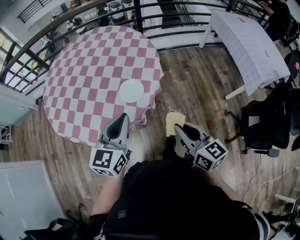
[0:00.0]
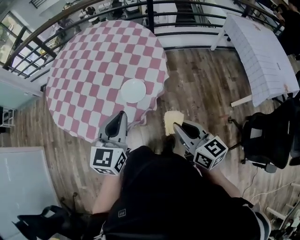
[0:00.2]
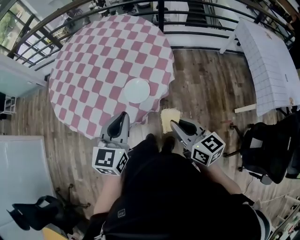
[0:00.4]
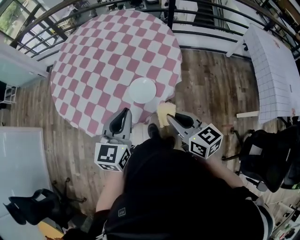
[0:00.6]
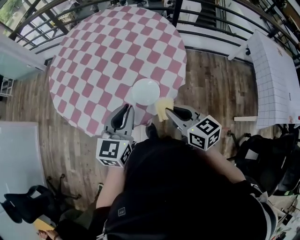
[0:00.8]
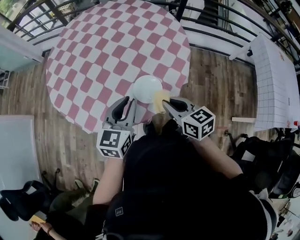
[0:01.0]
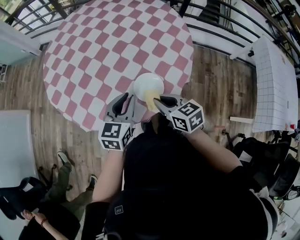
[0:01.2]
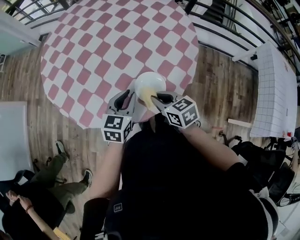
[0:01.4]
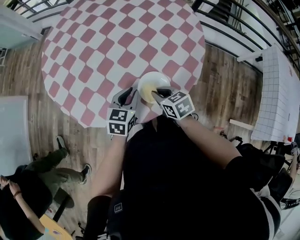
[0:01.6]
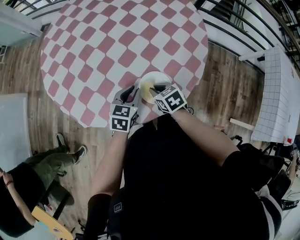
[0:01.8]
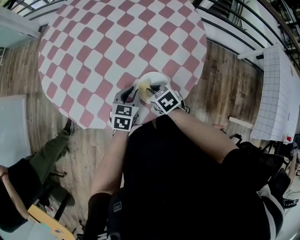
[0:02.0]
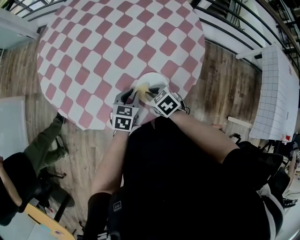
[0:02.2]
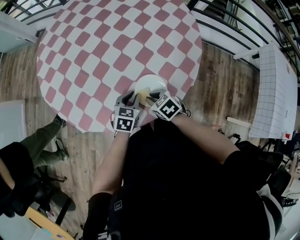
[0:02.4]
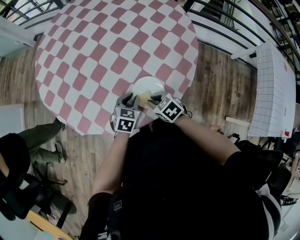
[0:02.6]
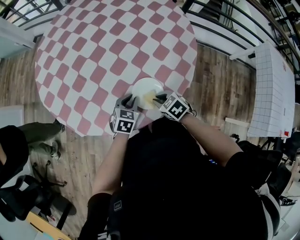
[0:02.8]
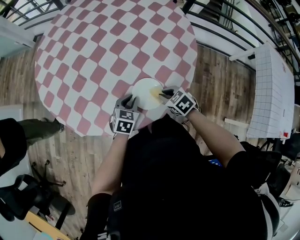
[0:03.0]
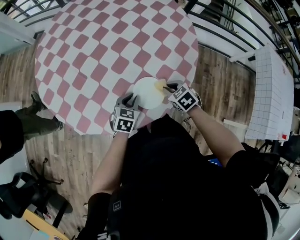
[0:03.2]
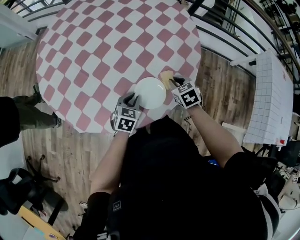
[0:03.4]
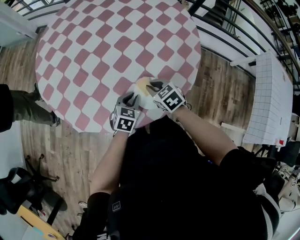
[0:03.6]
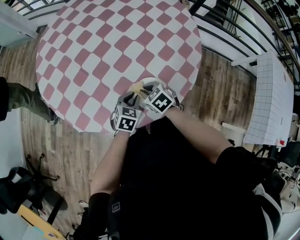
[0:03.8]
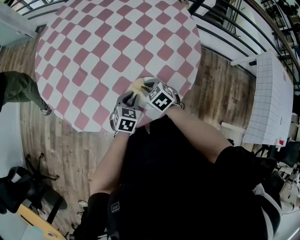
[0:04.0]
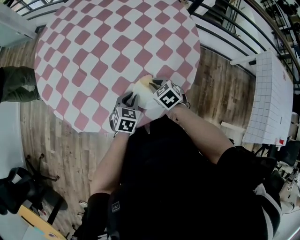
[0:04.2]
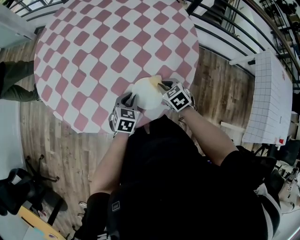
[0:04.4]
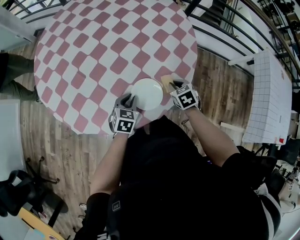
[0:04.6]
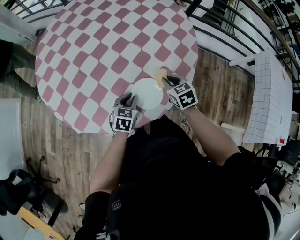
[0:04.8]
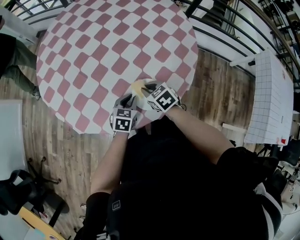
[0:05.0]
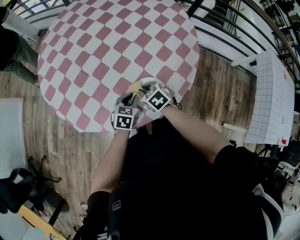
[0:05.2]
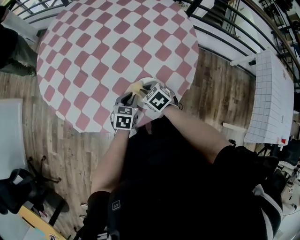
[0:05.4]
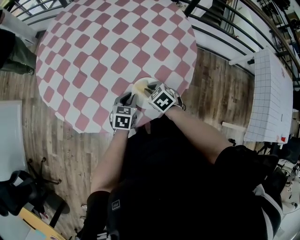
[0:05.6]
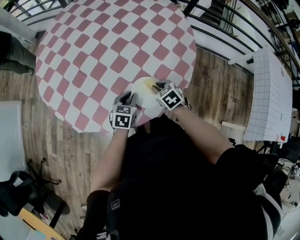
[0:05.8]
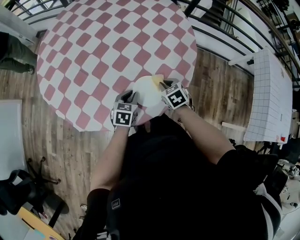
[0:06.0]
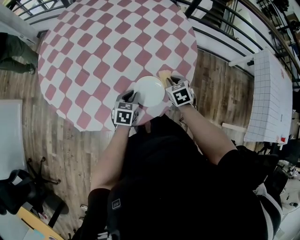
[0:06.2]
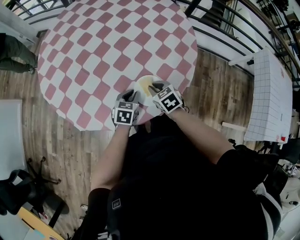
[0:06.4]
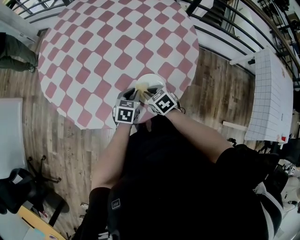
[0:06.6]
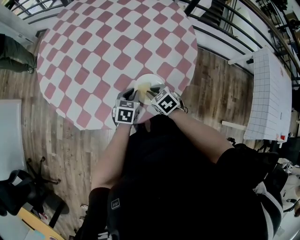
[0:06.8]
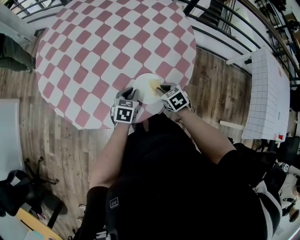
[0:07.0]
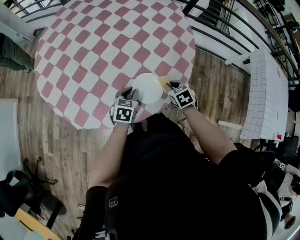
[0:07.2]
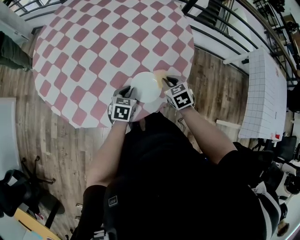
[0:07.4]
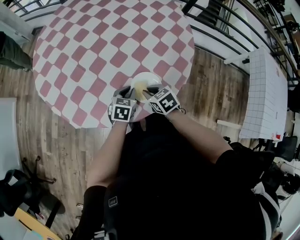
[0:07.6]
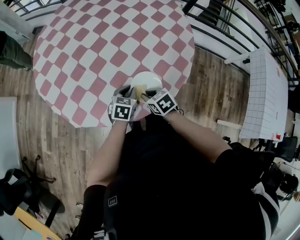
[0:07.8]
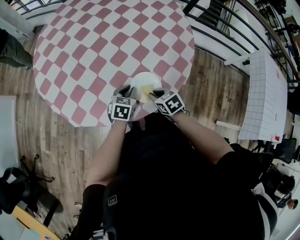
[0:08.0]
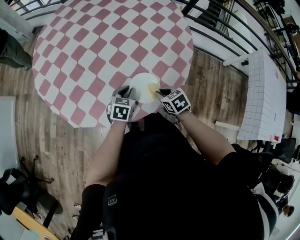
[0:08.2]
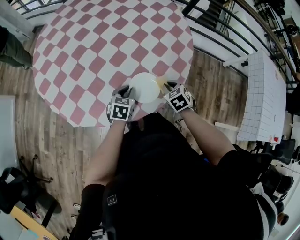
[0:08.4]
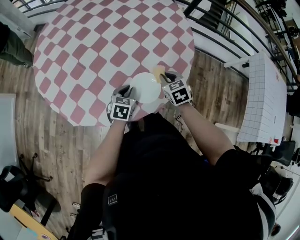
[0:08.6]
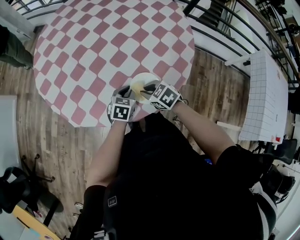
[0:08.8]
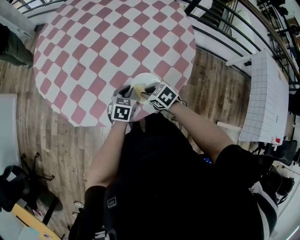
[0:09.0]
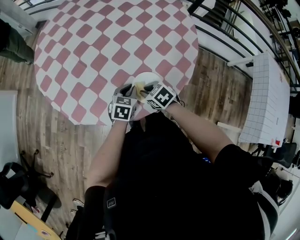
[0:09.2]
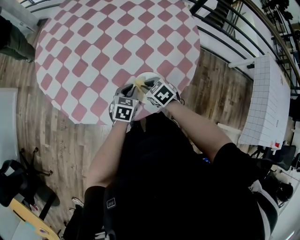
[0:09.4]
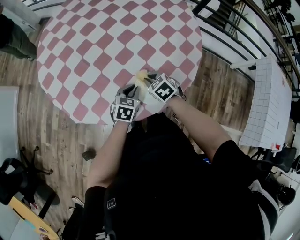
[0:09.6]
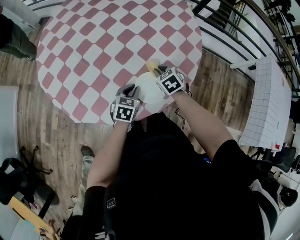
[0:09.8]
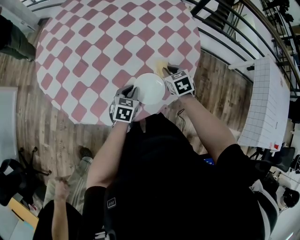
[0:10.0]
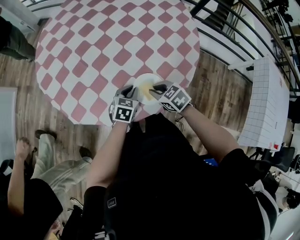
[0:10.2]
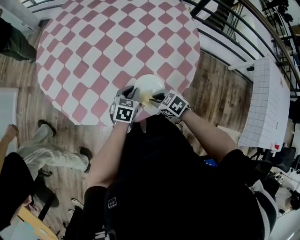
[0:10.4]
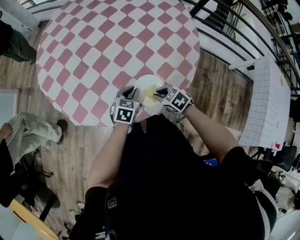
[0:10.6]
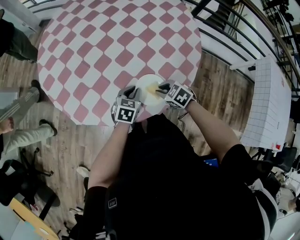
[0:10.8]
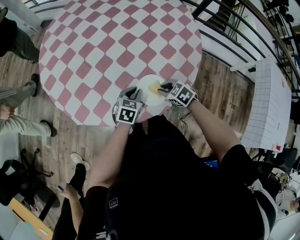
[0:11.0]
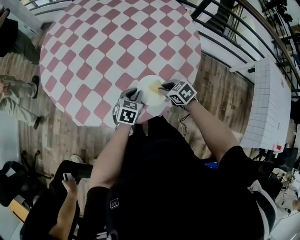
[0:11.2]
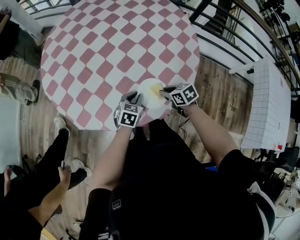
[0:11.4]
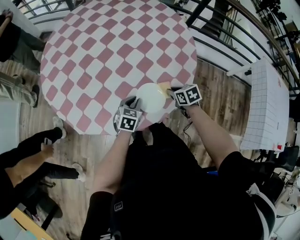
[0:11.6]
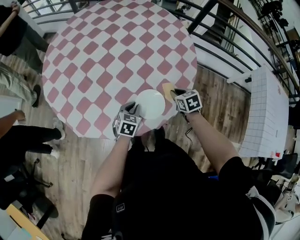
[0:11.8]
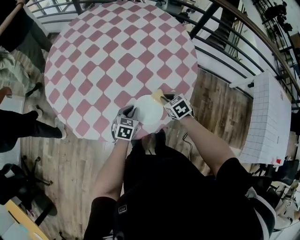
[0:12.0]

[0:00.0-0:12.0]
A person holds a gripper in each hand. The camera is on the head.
0:00.0 to 0:01.6: The right gripper changes place by about 40 cm, and tilts its fingers some 30 degrees downward; the left gripper moves downward, roughly 25 cm, and swivels about 30 degrees.
0:01.6 to 0:03.0: The right gripper shifts roughly 5 cm to the right, and swivels approximately 20 degrees; the left gripper goes roughly 10 cm downward.
0:03.0 to 0:04.4: The right gripper moves left and right over some 15 cm, changing direction 2 times.
0:04.4 to 0:06.0: The right gripper swings left and right, roughly 15 cm each way, with 2 reversals.
0:06.0 to 0:07.6: The right gripper swings left and right, roughly 15 cm each way, with 2 reversals.
0:10.4 to 0:12.0: The right gripper heads to the right and forward, covering about 15 cm, and swivels some 20 degrees.

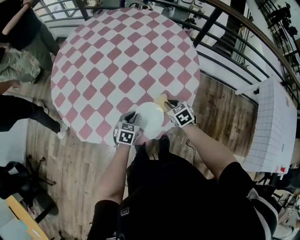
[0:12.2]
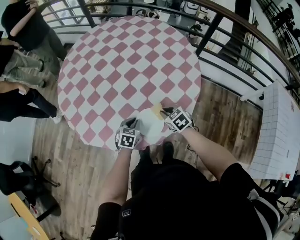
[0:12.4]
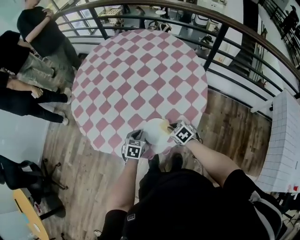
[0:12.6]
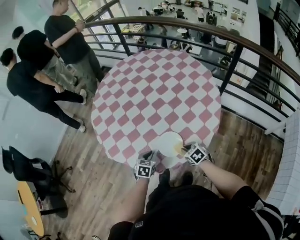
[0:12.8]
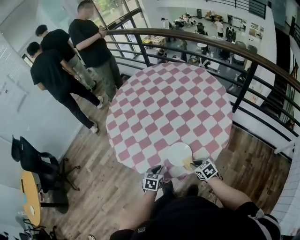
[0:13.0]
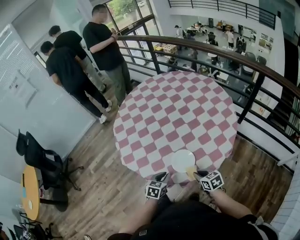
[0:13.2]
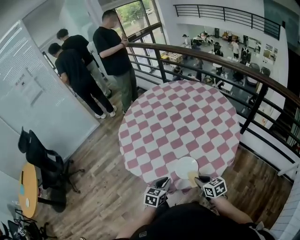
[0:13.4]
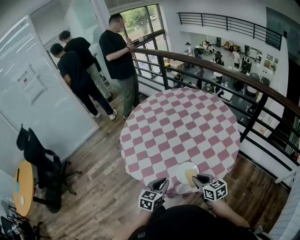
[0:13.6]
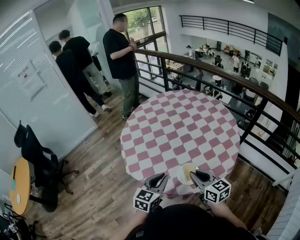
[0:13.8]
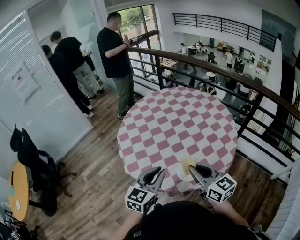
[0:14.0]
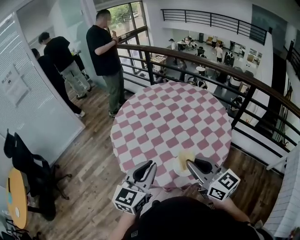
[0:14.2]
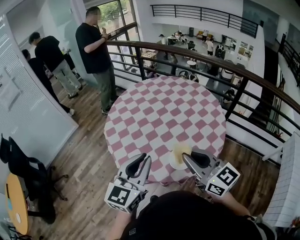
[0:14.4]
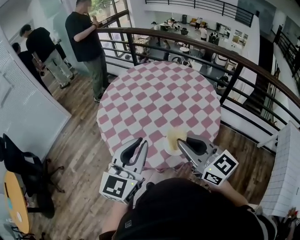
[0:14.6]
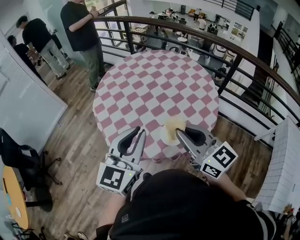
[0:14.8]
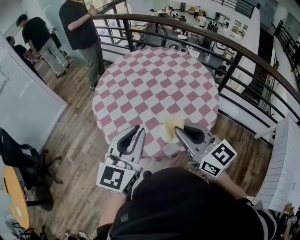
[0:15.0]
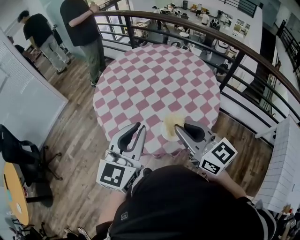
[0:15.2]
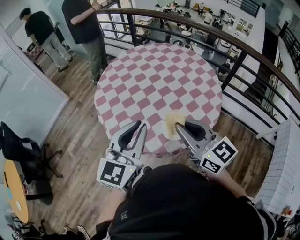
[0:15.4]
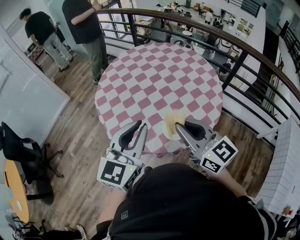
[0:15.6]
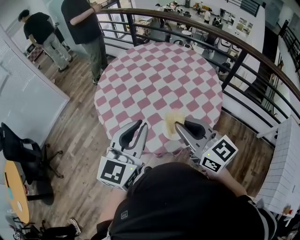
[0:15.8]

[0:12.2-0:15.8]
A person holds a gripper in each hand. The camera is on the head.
0:12.2 to 0:14.0: Both grippers move upward, some 30 cm. The left gripper angles its fingers upward, by about 30 degrees; the right gripper tilts its fingers some 50 degrees upward.
0:14.0 to 0:15.8: The grippers both shift upward by about 10 cm.

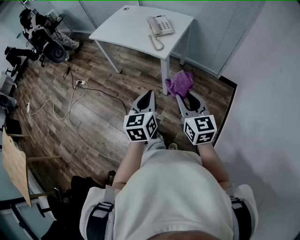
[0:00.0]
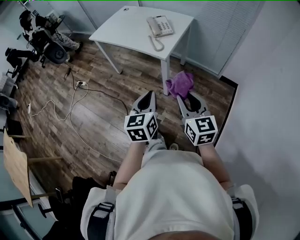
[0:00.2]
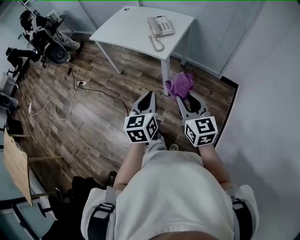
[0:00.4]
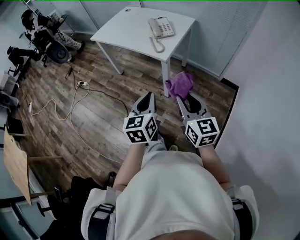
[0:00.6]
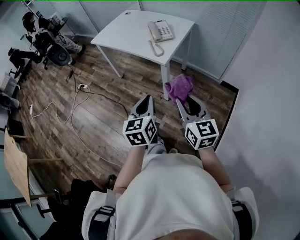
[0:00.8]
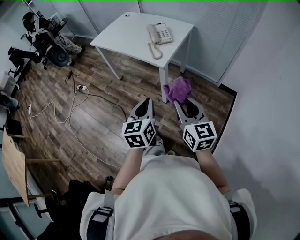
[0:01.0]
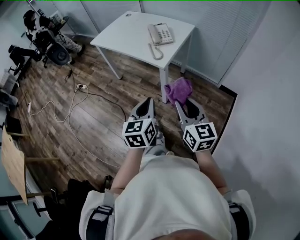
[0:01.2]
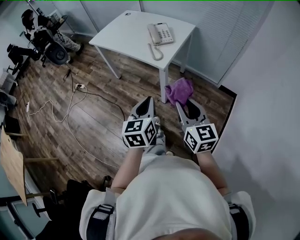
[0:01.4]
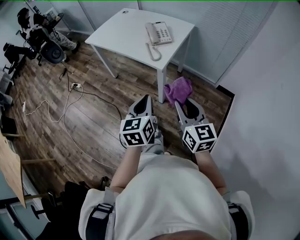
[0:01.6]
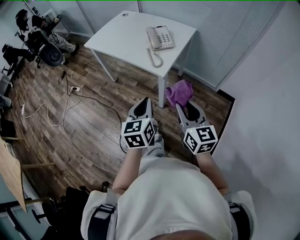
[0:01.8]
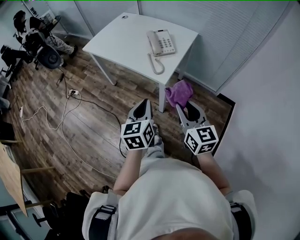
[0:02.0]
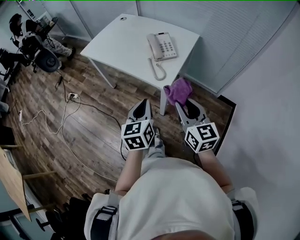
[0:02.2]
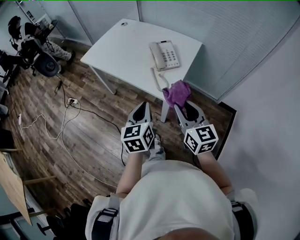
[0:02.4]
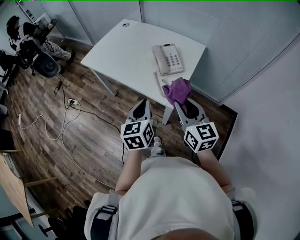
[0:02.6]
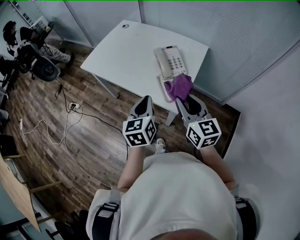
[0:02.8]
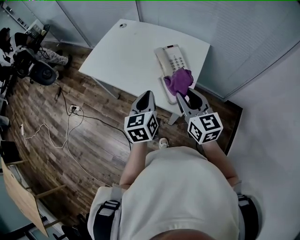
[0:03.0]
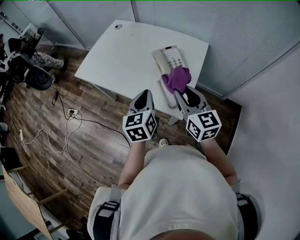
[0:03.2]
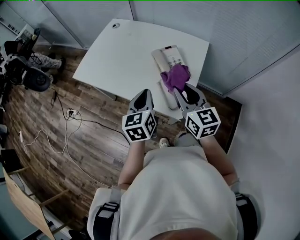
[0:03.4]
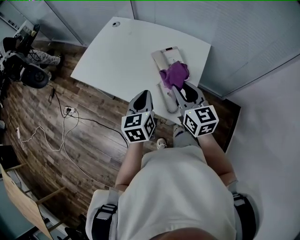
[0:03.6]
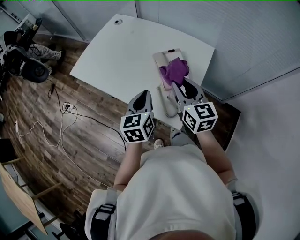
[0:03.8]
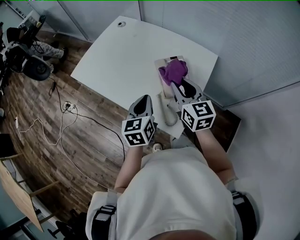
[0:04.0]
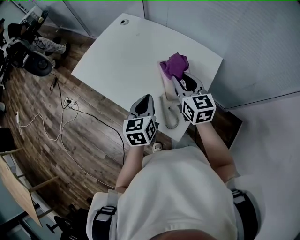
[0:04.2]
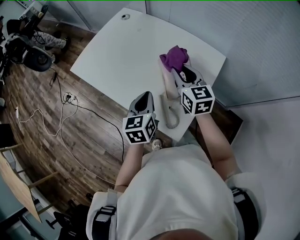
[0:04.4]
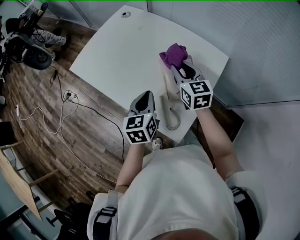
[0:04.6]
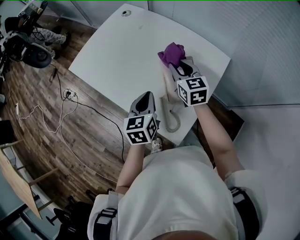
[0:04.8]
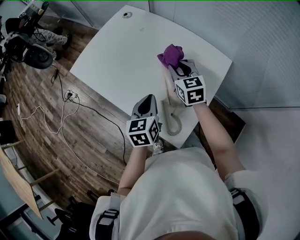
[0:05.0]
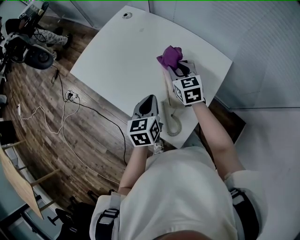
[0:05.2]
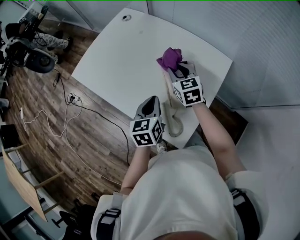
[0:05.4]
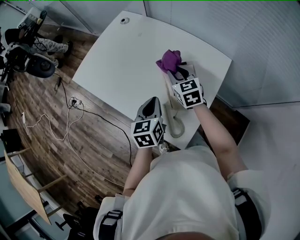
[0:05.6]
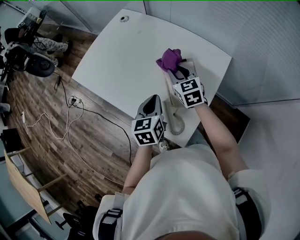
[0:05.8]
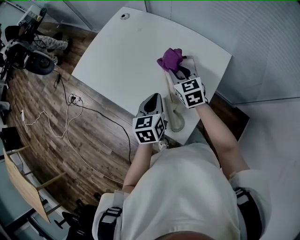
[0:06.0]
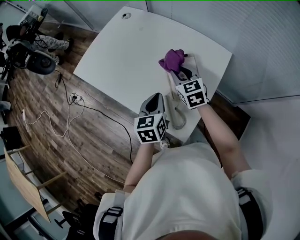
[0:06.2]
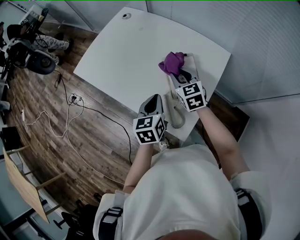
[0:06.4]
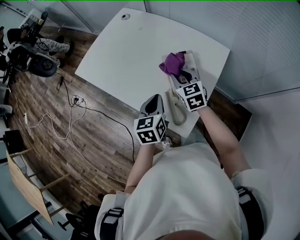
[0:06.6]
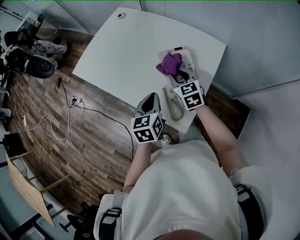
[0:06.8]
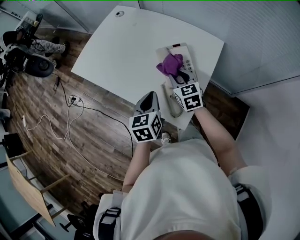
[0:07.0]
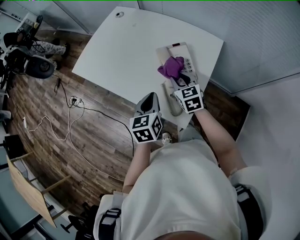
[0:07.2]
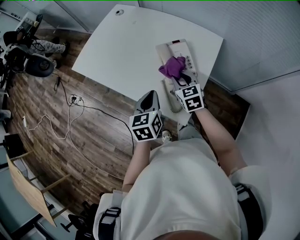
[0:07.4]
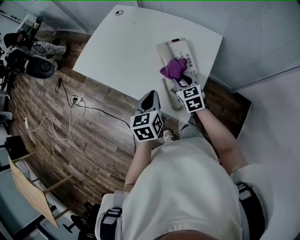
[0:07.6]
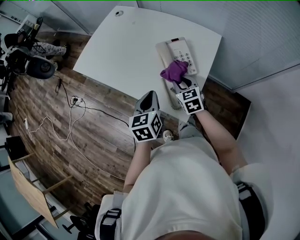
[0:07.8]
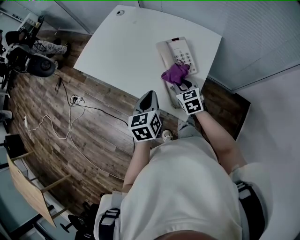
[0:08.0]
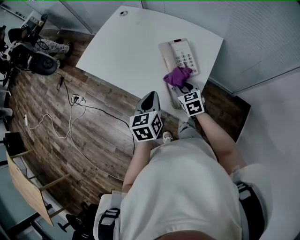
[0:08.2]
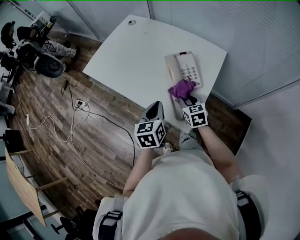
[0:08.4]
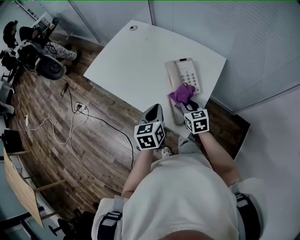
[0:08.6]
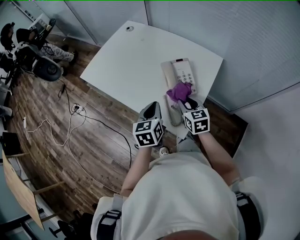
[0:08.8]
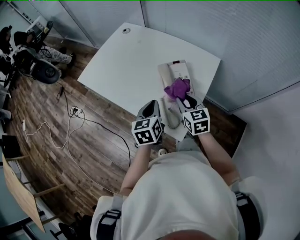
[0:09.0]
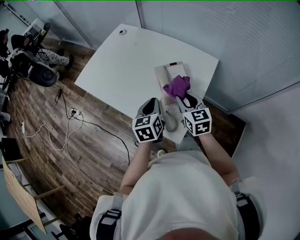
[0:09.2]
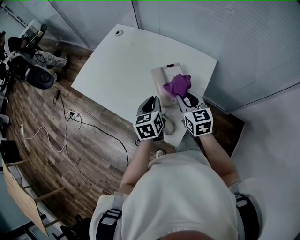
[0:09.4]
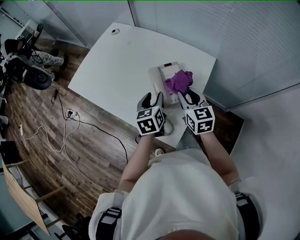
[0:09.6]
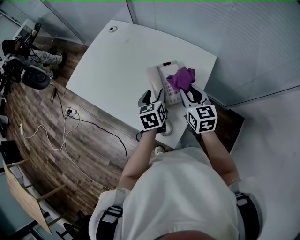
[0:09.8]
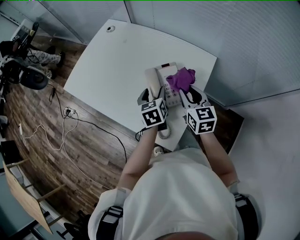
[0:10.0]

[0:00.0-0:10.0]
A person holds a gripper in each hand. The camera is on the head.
0:00.0 to 0:01.4: The grippers stay close to where they were, moving slightly.
0:01.4 to 0:02.8: The grippers both shift forward by about 35 cm.
0:02.8 to 0:04.2: The right gripper goes some 25 cm forward. The left gripper shifts about 20 cm forward.
0:04.2 to 0:05.8: The right gripper heads downward and forward, covering roughly 15 cm. The left gripper ends up roughly 5 cm from where it was.
0:05.8 to 0:07.2: The left gripper heads backward, covering roughly 5 cm. The right gripper goes about 10 cm backward.
0:07.2 to 0:08.6: The right gripper travels backward by roughly 5 cm.
0:08.6 to 0:10.0: The left gripper is displaced forward and to the right by about 15 cm, and opens; the right gripper moves forward, to the right and upward, about 15 cm.
